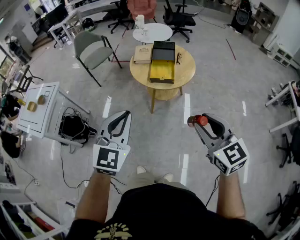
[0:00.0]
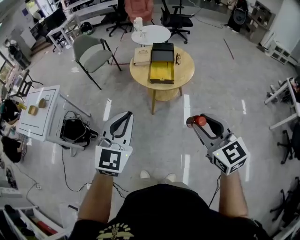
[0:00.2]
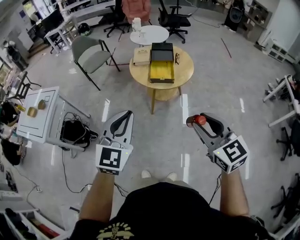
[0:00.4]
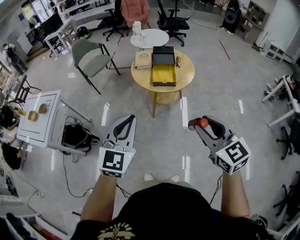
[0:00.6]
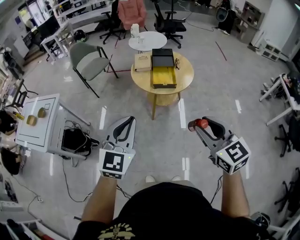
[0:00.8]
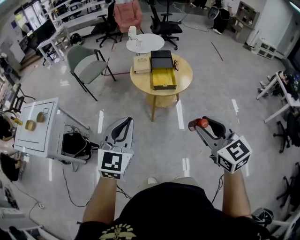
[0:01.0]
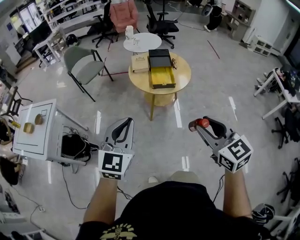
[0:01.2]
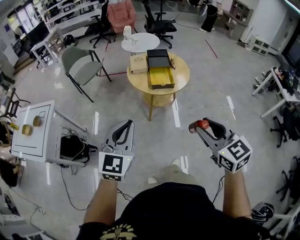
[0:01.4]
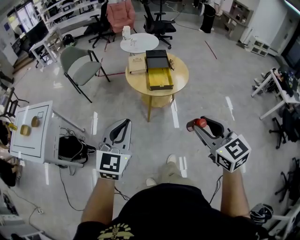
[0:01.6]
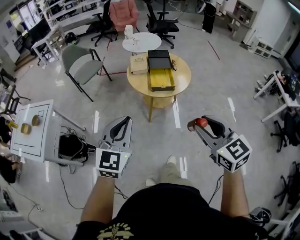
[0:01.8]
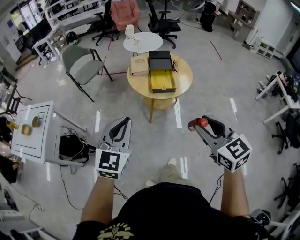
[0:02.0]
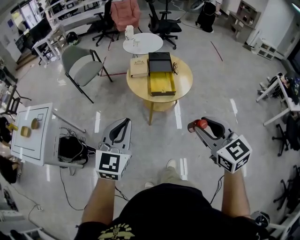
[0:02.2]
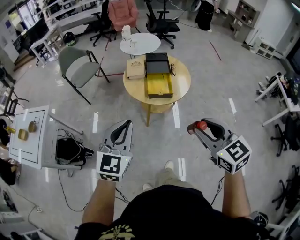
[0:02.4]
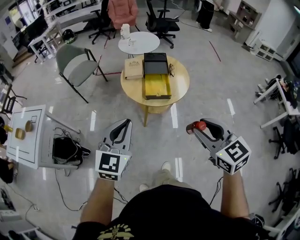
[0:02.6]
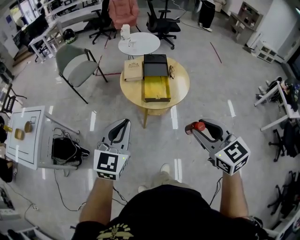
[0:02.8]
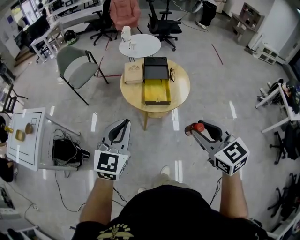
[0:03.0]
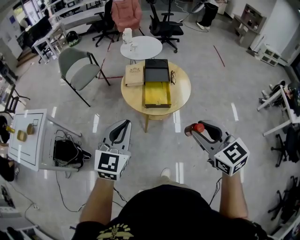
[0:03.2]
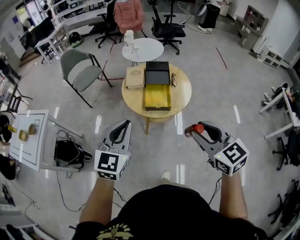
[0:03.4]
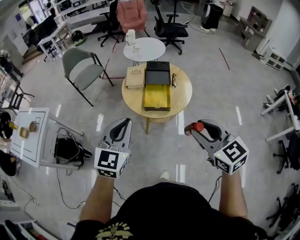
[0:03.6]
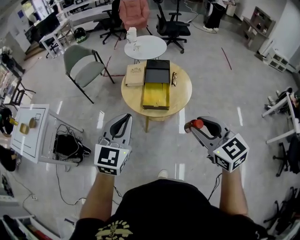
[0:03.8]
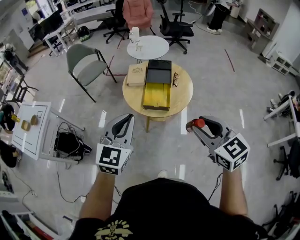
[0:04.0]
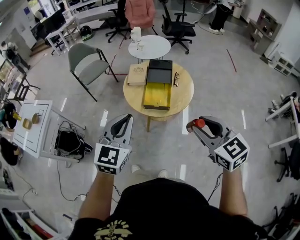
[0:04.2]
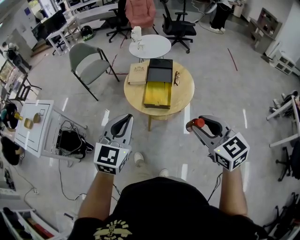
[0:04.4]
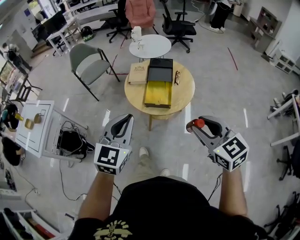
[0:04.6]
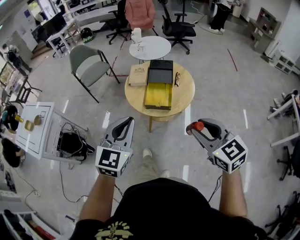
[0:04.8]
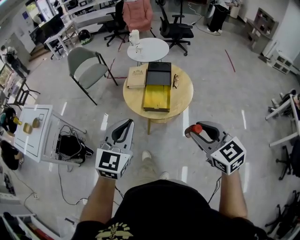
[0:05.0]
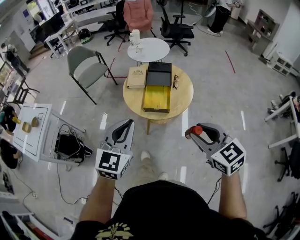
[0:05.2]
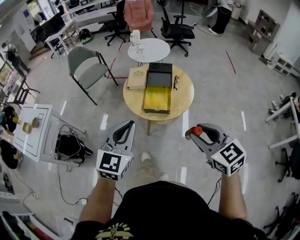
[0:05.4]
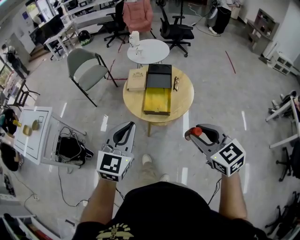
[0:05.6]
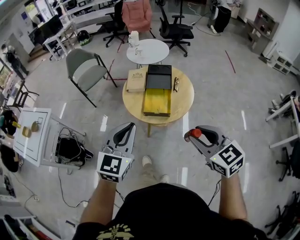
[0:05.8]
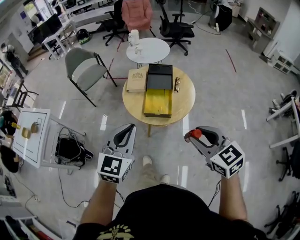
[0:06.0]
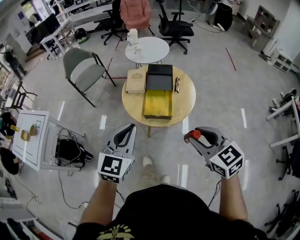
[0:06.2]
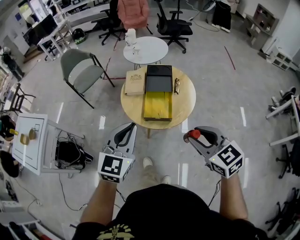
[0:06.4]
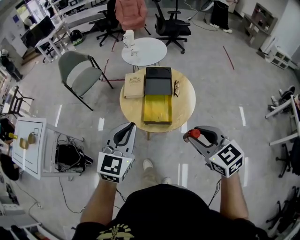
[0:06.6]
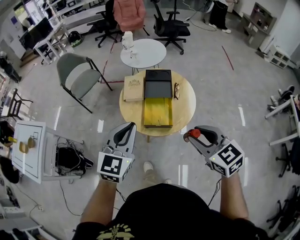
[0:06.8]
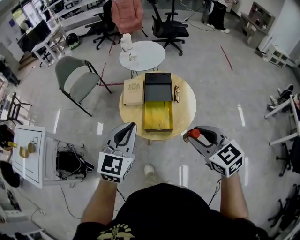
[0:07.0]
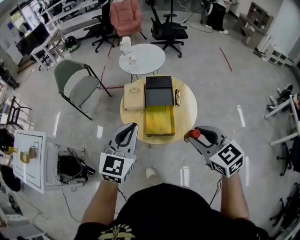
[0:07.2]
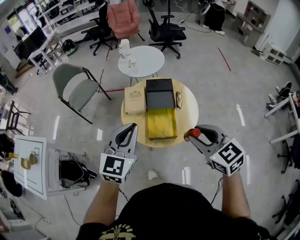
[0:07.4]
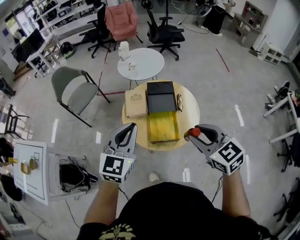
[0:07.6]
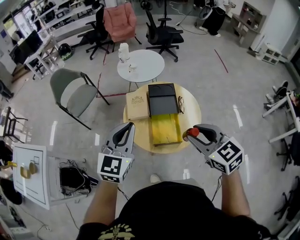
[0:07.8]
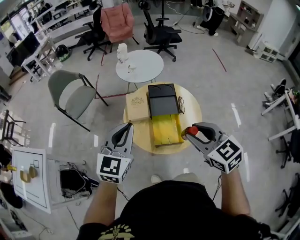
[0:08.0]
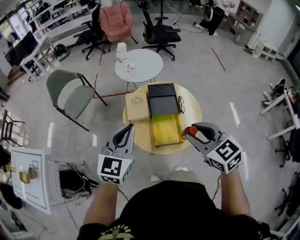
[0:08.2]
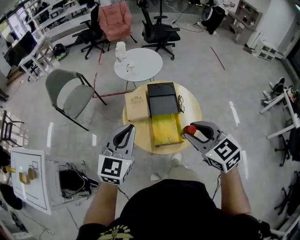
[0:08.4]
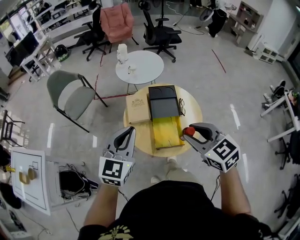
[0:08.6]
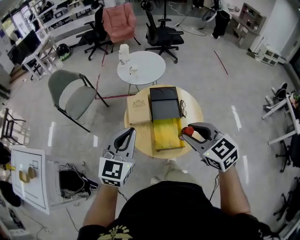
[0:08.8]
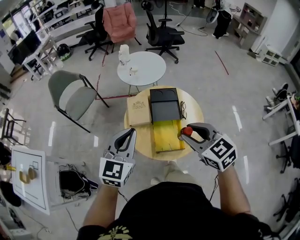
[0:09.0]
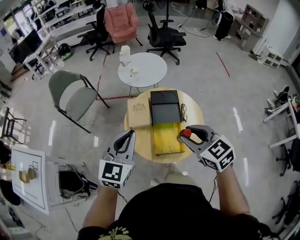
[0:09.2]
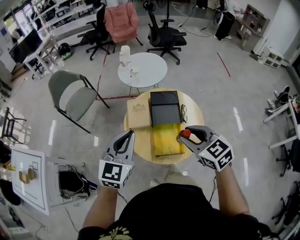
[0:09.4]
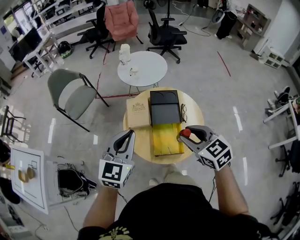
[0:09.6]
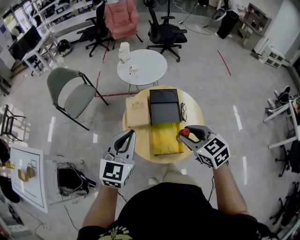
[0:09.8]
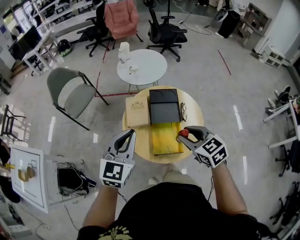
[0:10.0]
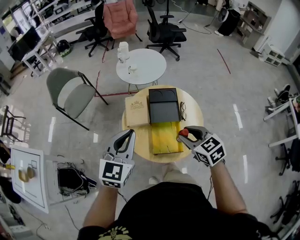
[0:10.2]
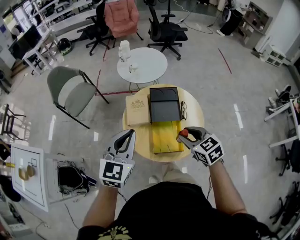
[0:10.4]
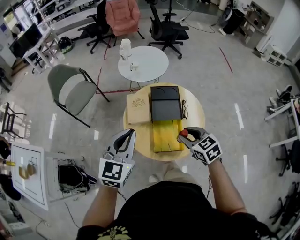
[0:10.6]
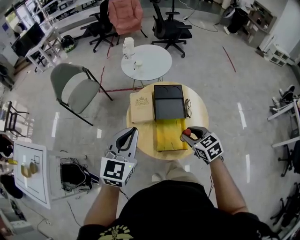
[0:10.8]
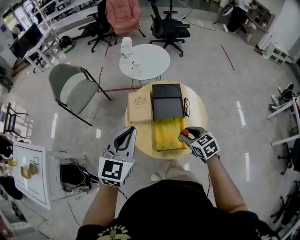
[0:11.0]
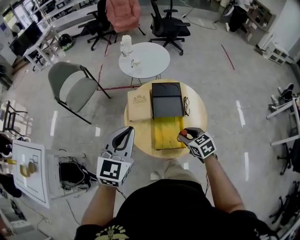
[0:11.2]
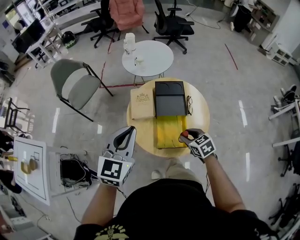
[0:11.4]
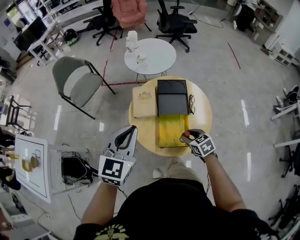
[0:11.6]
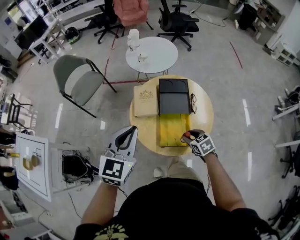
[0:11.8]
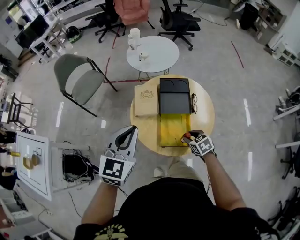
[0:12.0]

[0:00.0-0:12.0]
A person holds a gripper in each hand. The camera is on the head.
0.0 to 1.6 s: The grippers both shift to the left by about 15 cm.
1.6 to 3.0 s: Both grippers travel together forward and to the right, some 20 cm.
3.0 to 4.4 s: The two grippers go some 10 cm to the right.
4.4 to 6.0 s: The right gripper ends up about 5 cm from where it was, while the left gripper shifts by some 5 cm.
6.0 to 7.6 s: Both grippers move forward, roughly 20 cm.
7.6 to 9.0 s: The right gripper goes some 10 cm forward and to the left. Meanwhile the left gripper heads forward, covering some 5 cm.
9.0 to 10.4 s: The right gripper heads downward, covering about 10 cm.
10.4 to 12.0 s: The right gripper goes about 20 cm downward.

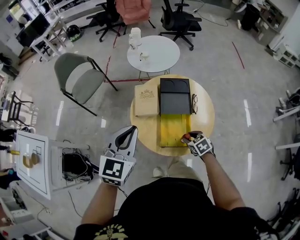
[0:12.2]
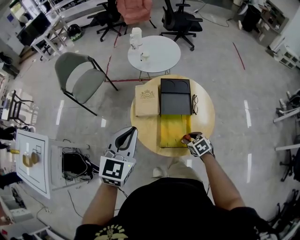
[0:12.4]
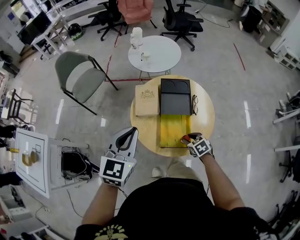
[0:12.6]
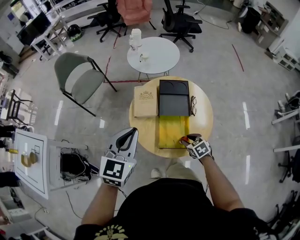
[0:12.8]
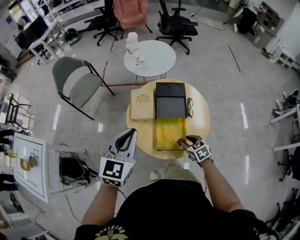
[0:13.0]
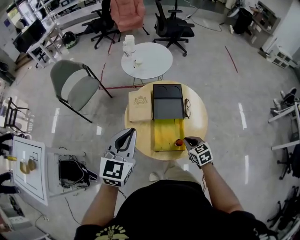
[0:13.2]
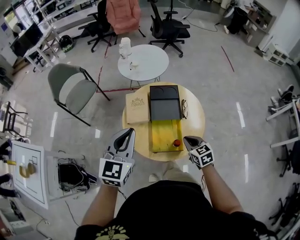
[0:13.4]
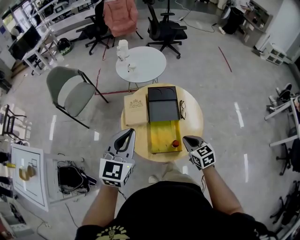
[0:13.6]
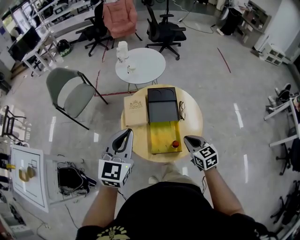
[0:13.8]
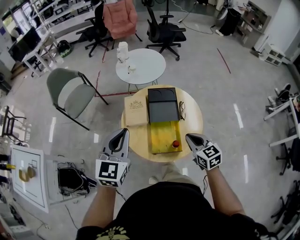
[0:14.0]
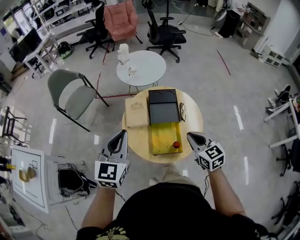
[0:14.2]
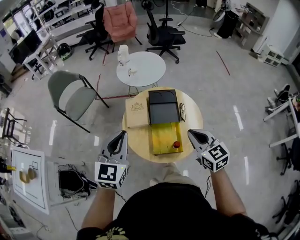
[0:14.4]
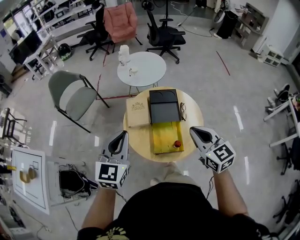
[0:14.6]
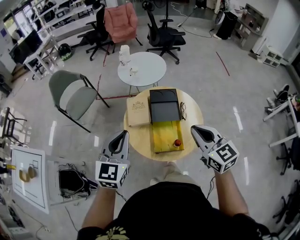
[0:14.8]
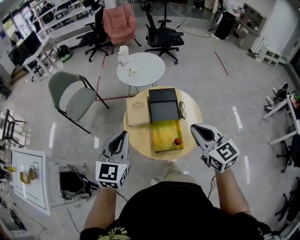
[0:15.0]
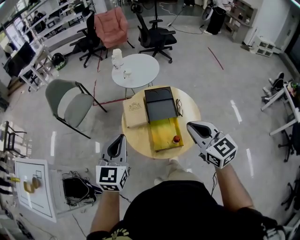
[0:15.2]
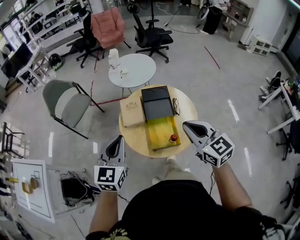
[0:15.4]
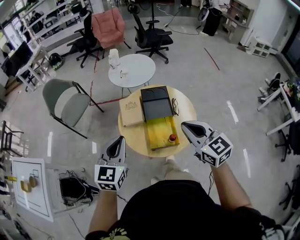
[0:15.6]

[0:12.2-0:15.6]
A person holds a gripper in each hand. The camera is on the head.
12.2 to 13.8 s: The right gripper moves upward, about 15 cm, changes its angle by roughly 30 degrees, and closes.
13.8 to 15.6 s: The left gripper is displaced backward by some 5 cm. The right gripper moves upward, roughly 20 cm.

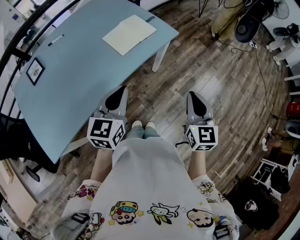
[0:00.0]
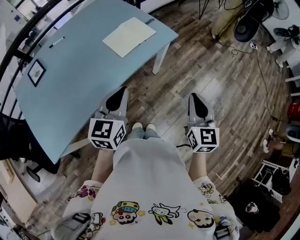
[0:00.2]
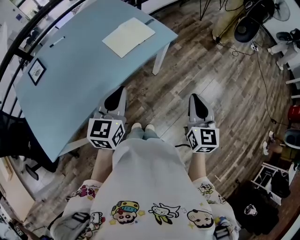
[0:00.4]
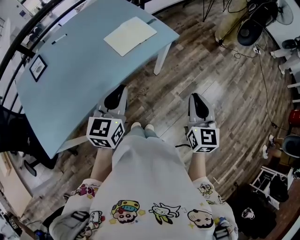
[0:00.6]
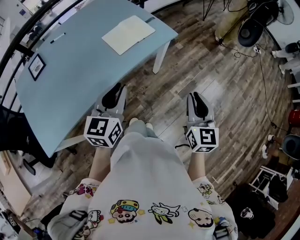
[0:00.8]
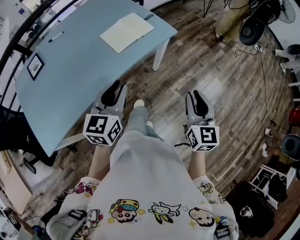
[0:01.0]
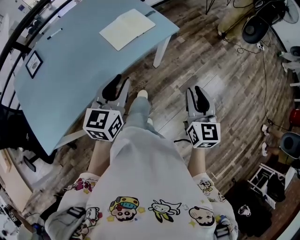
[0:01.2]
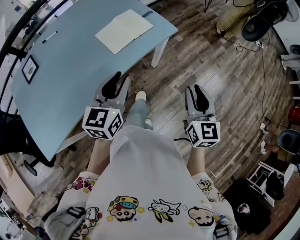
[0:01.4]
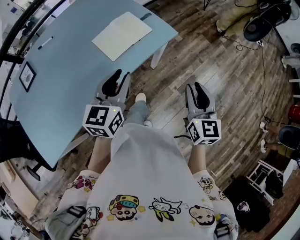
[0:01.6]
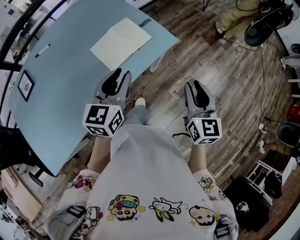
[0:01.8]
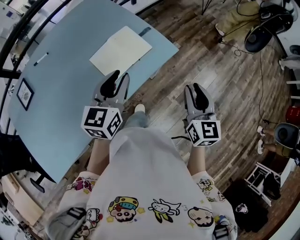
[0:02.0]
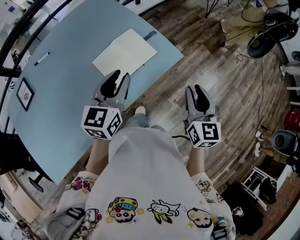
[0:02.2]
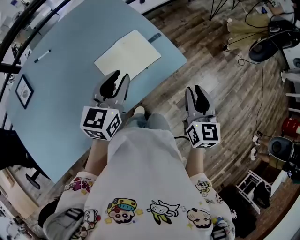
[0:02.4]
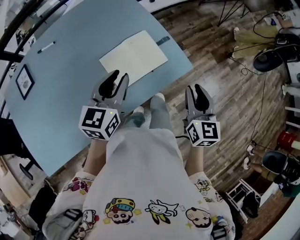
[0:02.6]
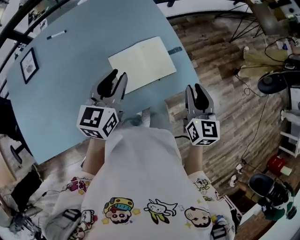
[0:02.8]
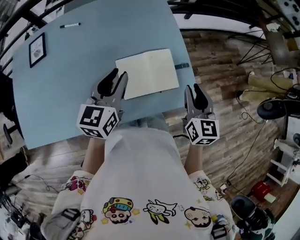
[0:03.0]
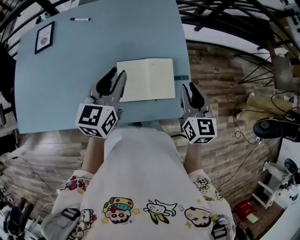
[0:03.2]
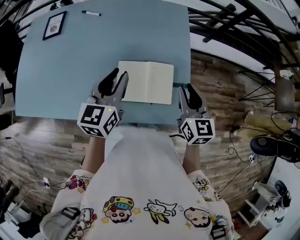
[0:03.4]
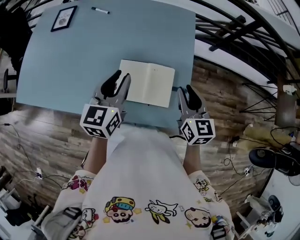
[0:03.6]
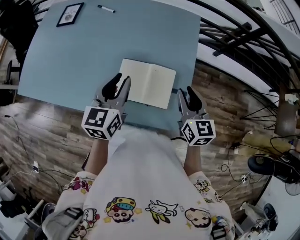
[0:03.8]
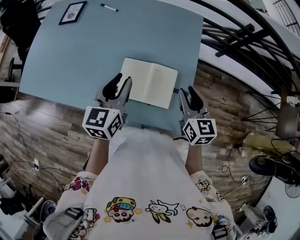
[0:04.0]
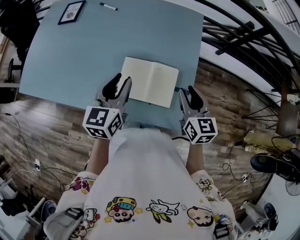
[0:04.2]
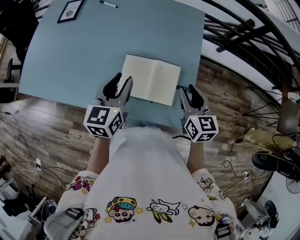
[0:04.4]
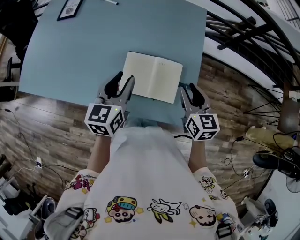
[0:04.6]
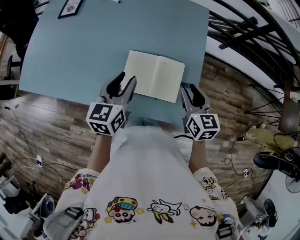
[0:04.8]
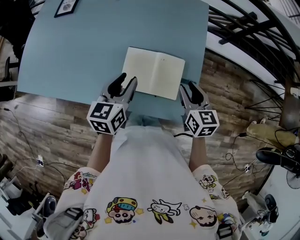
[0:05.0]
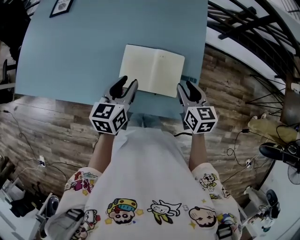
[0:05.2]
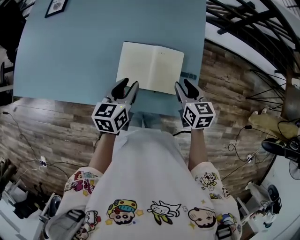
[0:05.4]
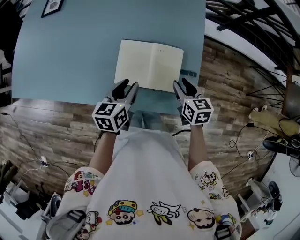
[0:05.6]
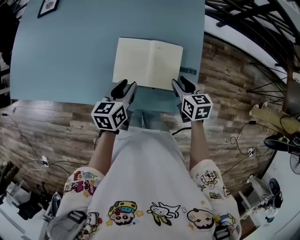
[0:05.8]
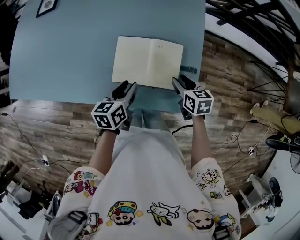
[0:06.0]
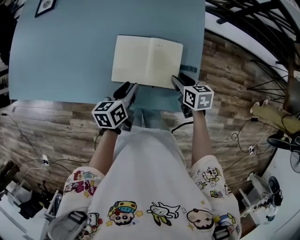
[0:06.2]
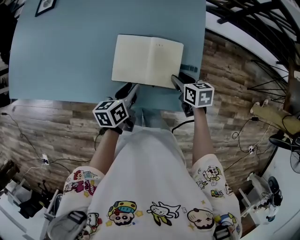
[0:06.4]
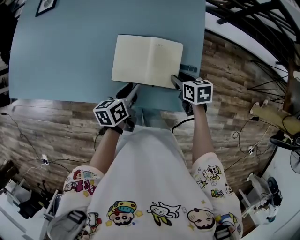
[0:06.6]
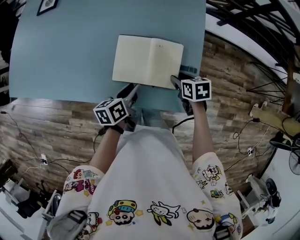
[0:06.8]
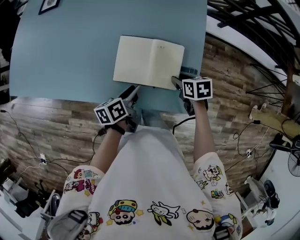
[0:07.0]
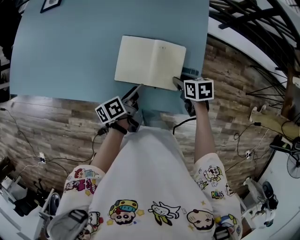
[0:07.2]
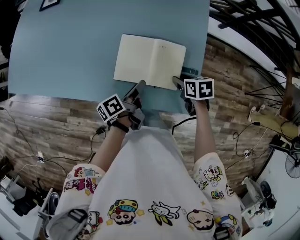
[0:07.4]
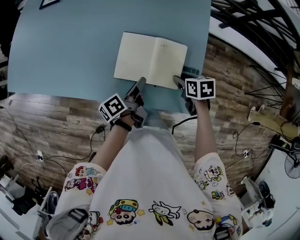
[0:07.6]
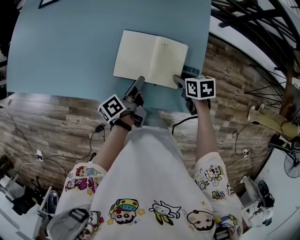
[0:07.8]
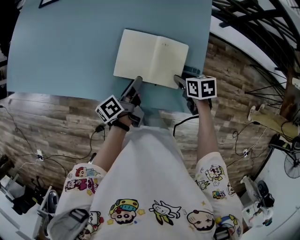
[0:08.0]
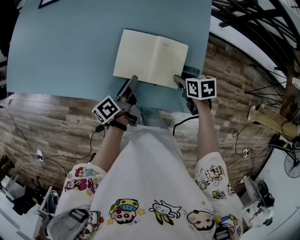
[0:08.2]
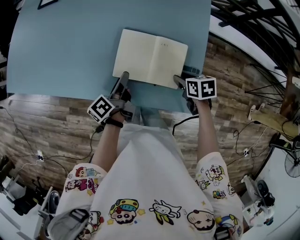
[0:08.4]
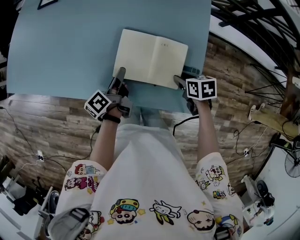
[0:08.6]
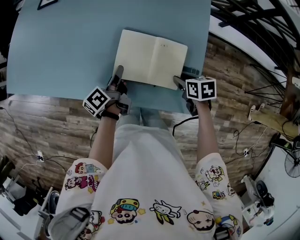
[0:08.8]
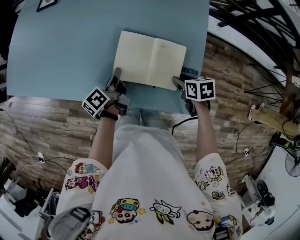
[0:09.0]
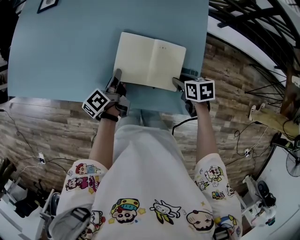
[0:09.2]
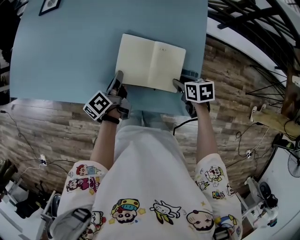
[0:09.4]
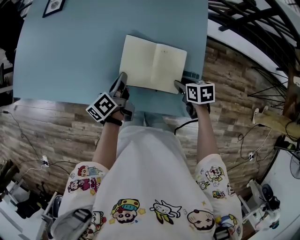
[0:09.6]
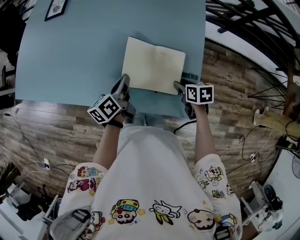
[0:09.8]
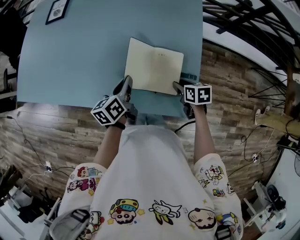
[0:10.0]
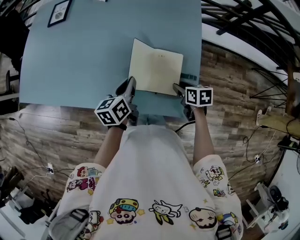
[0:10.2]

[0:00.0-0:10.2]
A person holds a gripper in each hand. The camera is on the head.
0.0 to 1.4 s: The two grippers go roughly 5 cm forward. The left gripper opens up. Meanwhile the right gripper opens up.
1.4 to 3.0 s: The right gripper moves some 40 cm, and turns by about 30 degrees, while the left gripper moves about 30 cm, and turns by about 30 degrees.
3.0 to 4.4 s: The right gripper changes place by roughly 10 cm, and turns by roughly 30 degrees. Meanwhile the left gripper rotates approximately 30 degrees.
4.4 to 5.8 s: The two grippers go approximately 15 cm downward. The left gripper swivels approximately 30 degrees. Meanwhile the right gripper changes its angle by about 20 degrees.
5.8 to 7.2 s: The right gripper swivels about 20 degrees. Meanwhile the left gripper changes place by about 5 cm, and rolls counterclockwise, seen from behind, by approximately 40 degrees.
7.2 to 8.8 s: The left gripper travels forward and to the left by approximately 10 cm, and turns by about 20 degrees.
8.8 to 10.2 s: The left gripper moves upward, roughly 10 cm, swivels roughly 40 degrees, and closes its fingers.
